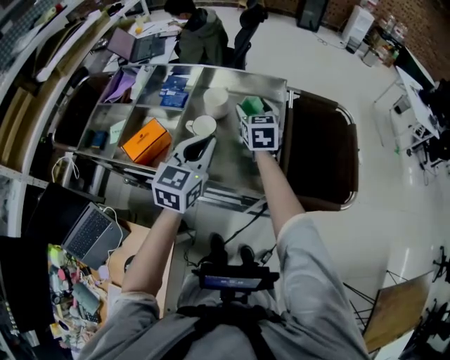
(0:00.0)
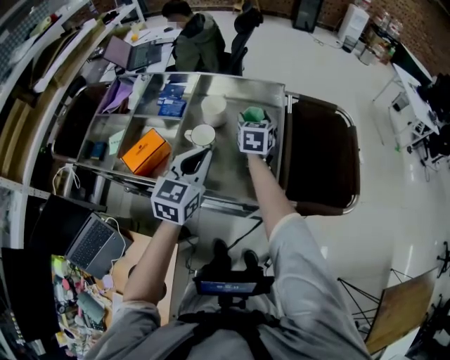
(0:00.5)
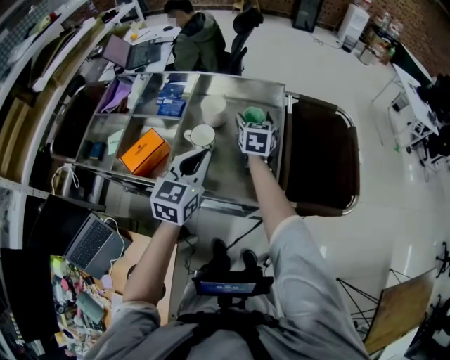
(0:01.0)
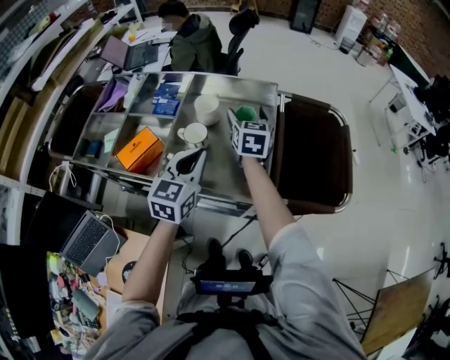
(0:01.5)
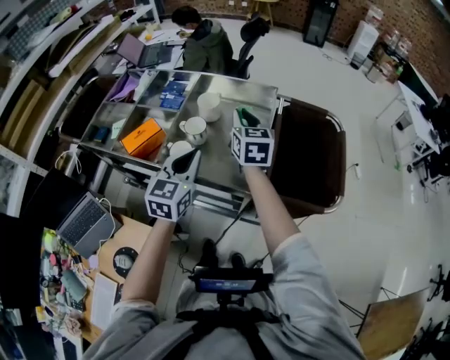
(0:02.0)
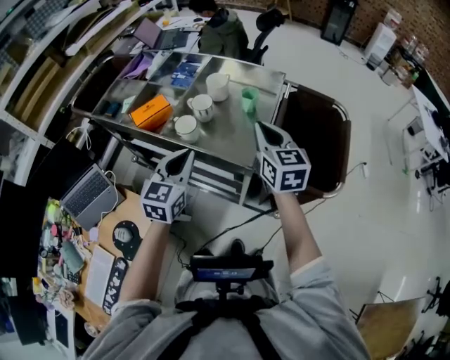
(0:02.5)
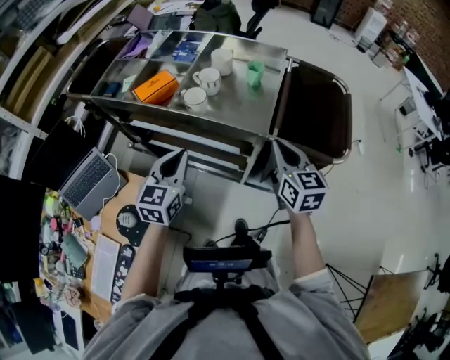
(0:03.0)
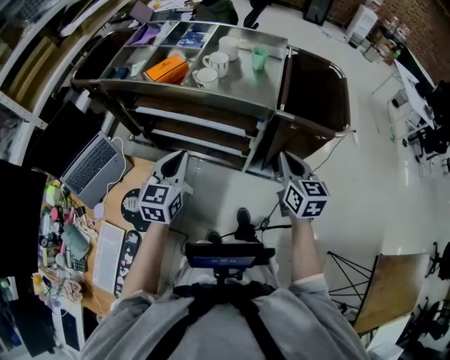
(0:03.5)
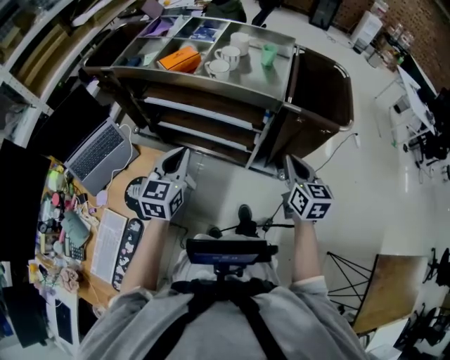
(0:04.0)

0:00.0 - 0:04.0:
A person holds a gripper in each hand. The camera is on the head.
0:00.0 - 0:02.0: The right gripper travels upward and backward by about 10 cm, and closes.
0:02.0 - 0:04.0: The right gripper heads backward, covering roughly 40 cm. Meanwhile the left gripper travels backward and to the left by about 35 cm.

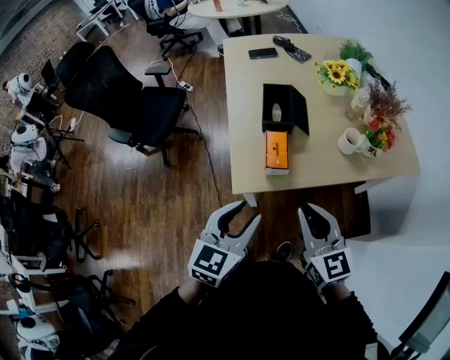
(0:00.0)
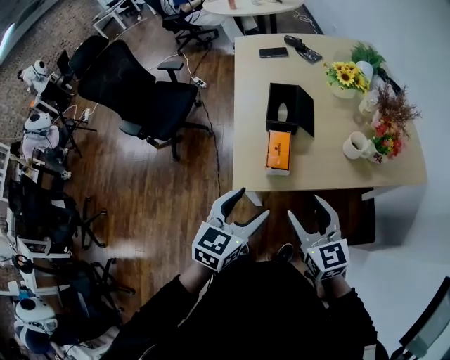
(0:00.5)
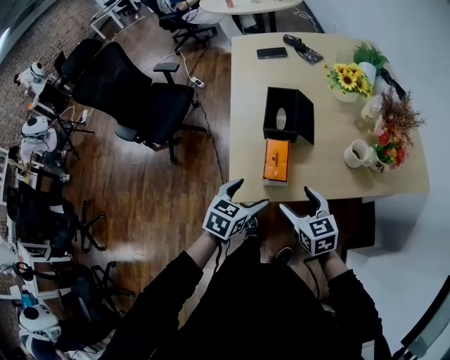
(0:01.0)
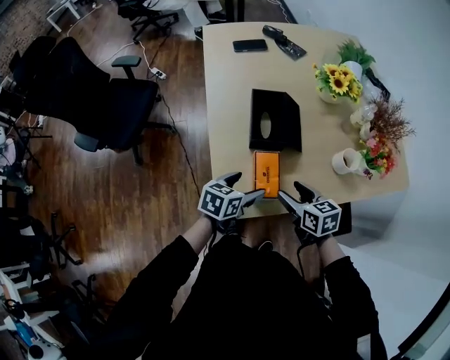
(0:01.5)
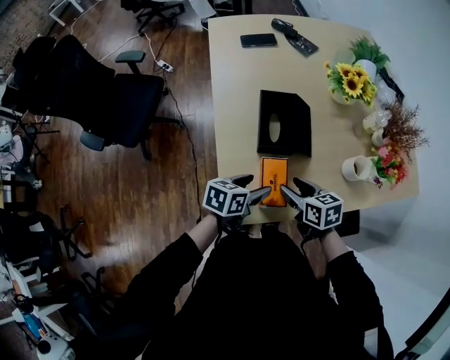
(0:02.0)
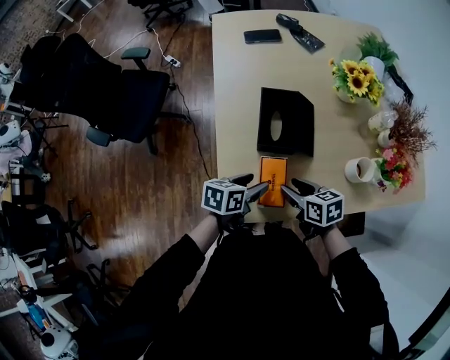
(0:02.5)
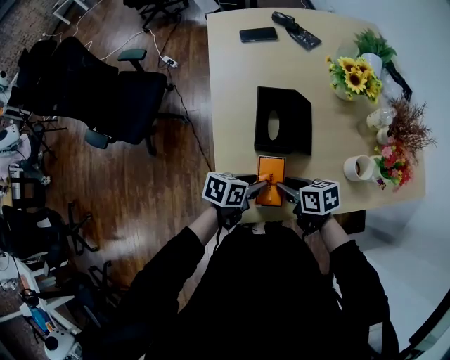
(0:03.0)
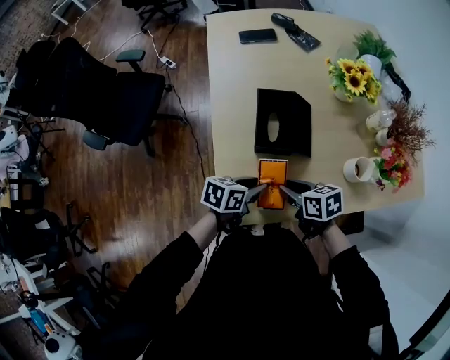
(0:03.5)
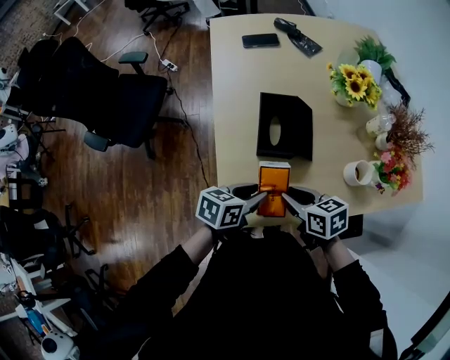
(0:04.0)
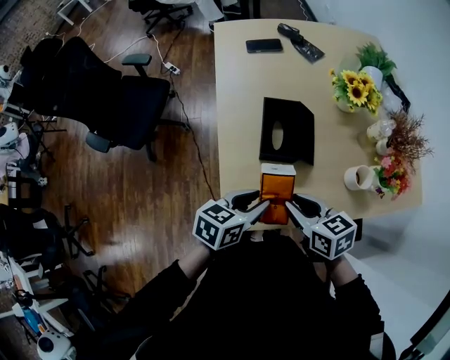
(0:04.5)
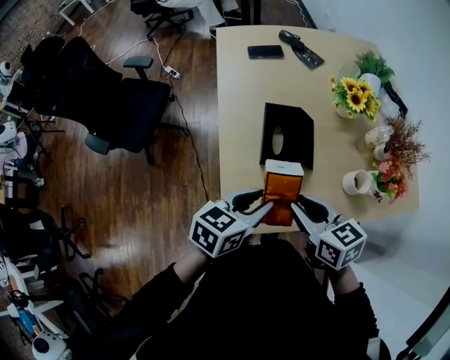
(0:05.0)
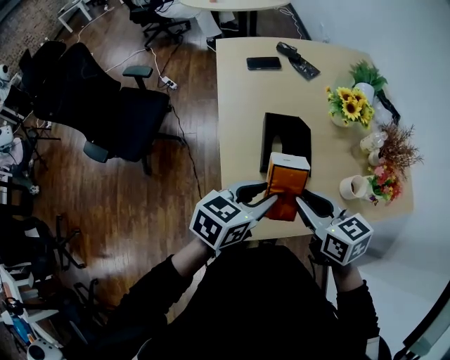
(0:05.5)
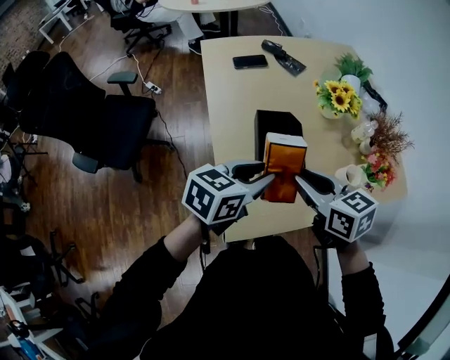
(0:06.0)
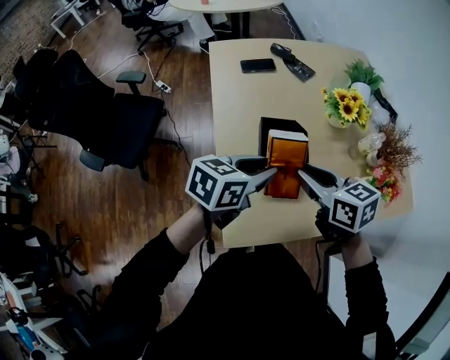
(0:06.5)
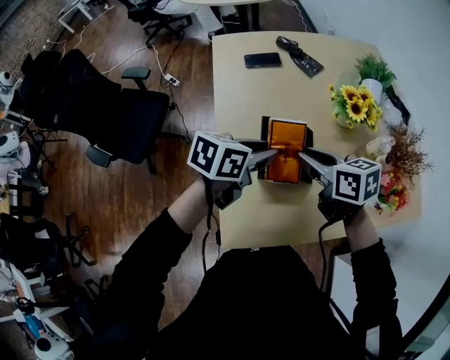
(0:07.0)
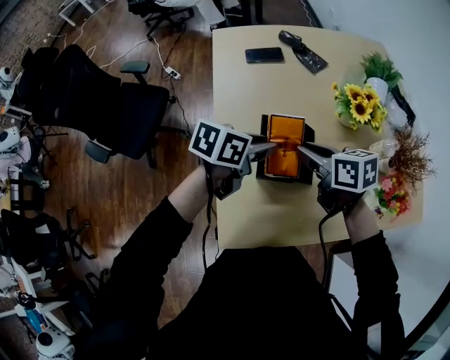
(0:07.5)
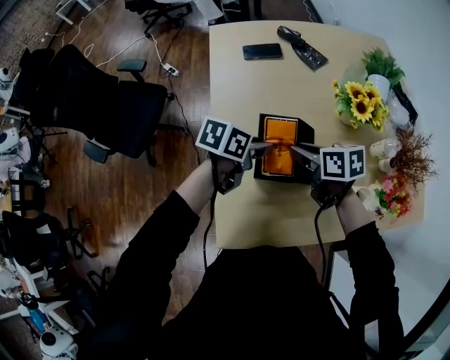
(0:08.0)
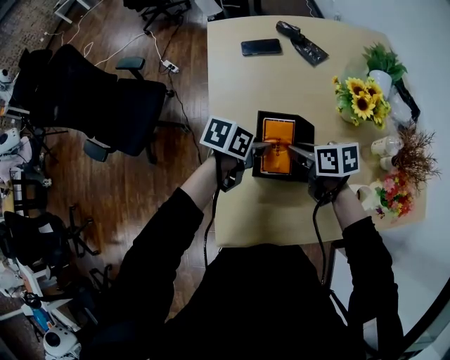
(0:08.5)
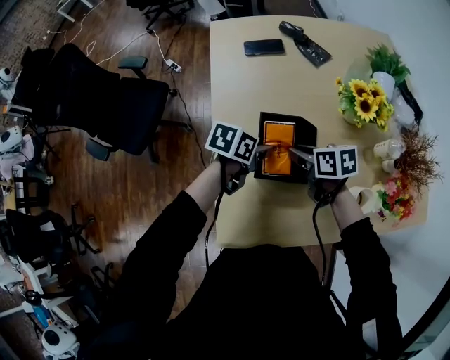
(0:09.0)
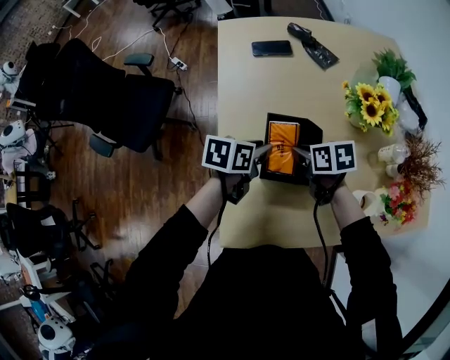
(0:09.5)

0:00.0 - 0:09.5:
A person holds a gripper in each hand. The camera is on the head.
0:00.0 - 0:02.0: Both grippers travel together forward and downward, about 30 cm. The right gripper changes its angle by some 40 degrees, and opens up. Meanwhile the left gripper turns by roughly 40 degrees, and opens.
0:02.0 - 0:04.0: The right gripper closes. Meanwhile the left gripper closes up.
0:04.0 - 0:05.5: The two grippers go approximately 15 cm upward. The left gripper rotates some 20 degrees.
0:05.5 - 0:07.5: The two grippers go roughly 15 cm forward.
0:07.5 - 0:09.5: The two grippers go some 10 cm downward.

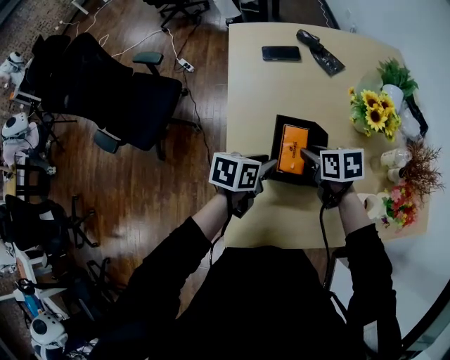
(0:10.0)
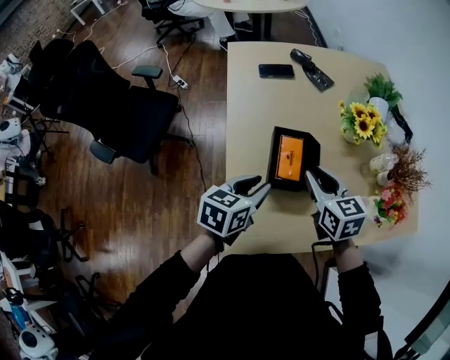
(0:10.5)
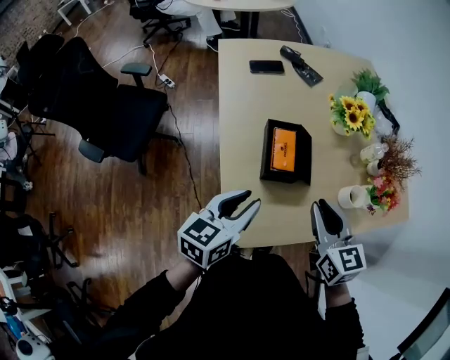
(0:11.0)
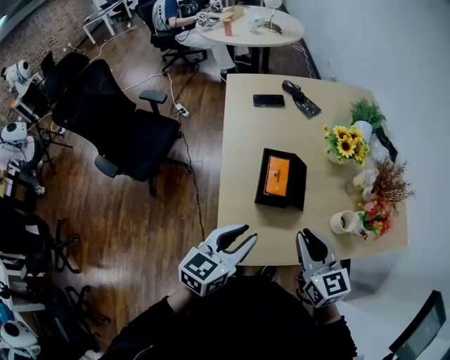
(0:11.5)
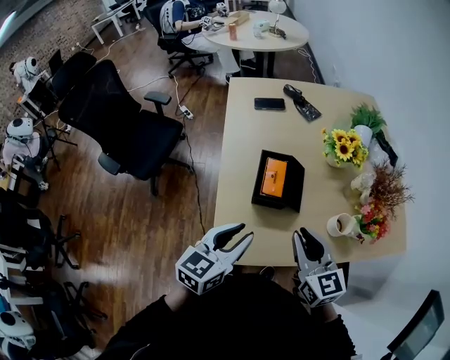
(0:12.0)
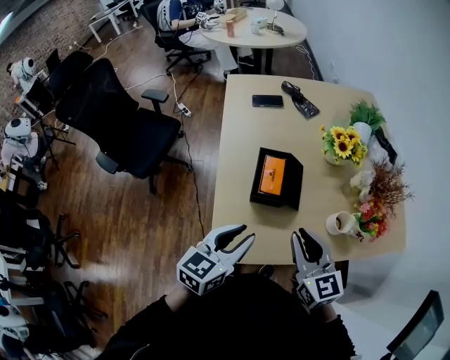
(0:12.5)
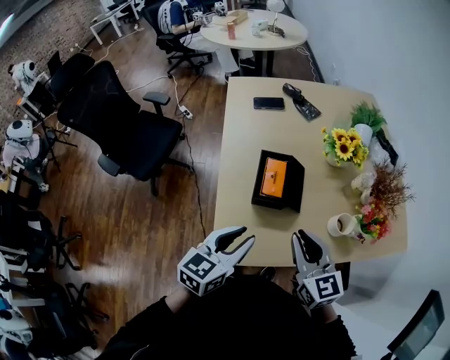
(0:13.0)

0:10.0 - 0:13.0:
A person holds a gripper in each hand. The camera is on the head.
0:10.0 - 0:11.5: Both grippers travel together backward and upward, roughly 25 cm. The right gripper tilts its fingers some 30 degrees upward. The left gripper swivels approximately 30 degrees.
0:11.5 - 0:13.0: The grippers make only small movements.

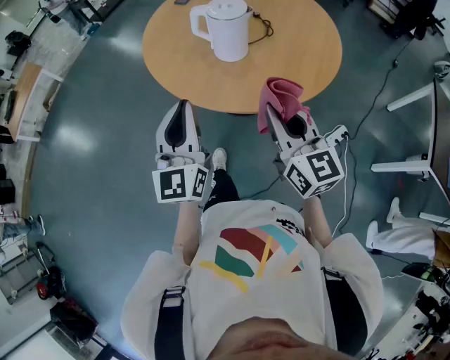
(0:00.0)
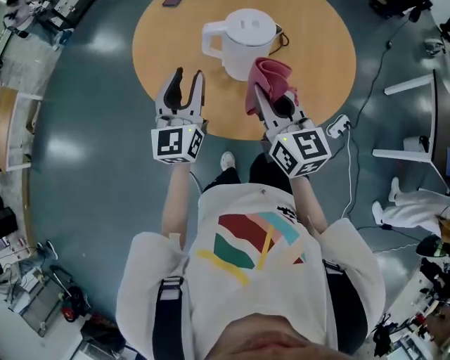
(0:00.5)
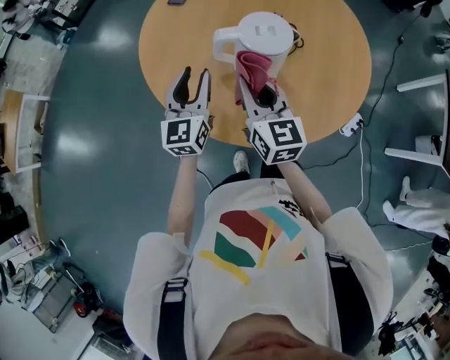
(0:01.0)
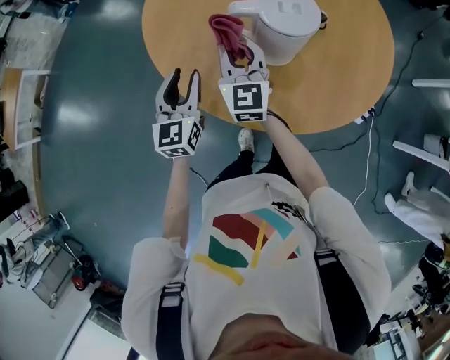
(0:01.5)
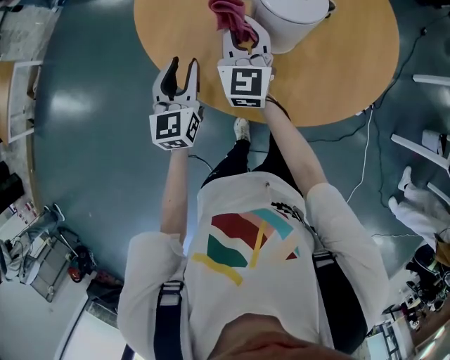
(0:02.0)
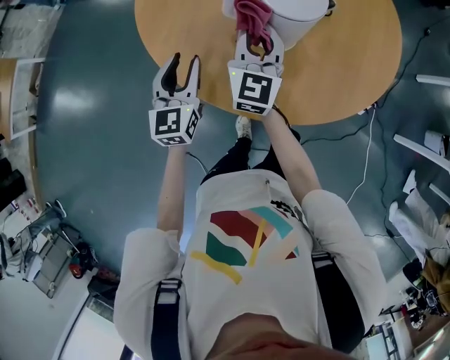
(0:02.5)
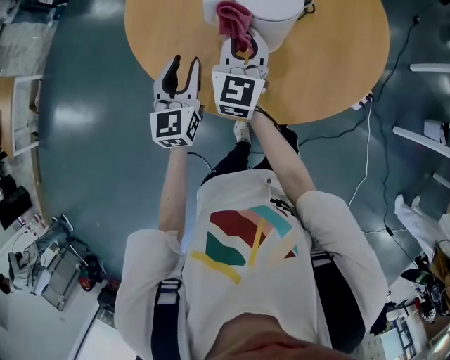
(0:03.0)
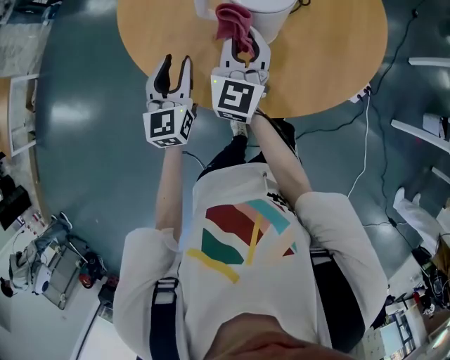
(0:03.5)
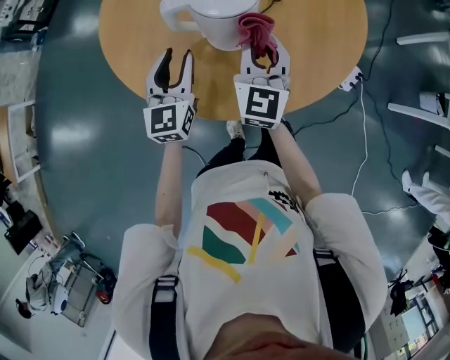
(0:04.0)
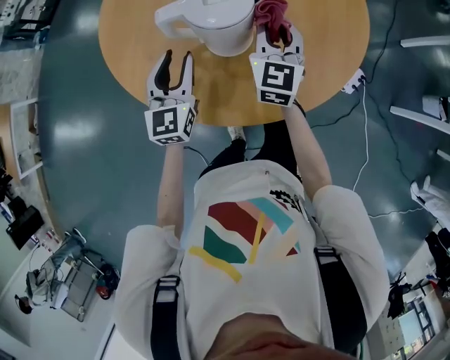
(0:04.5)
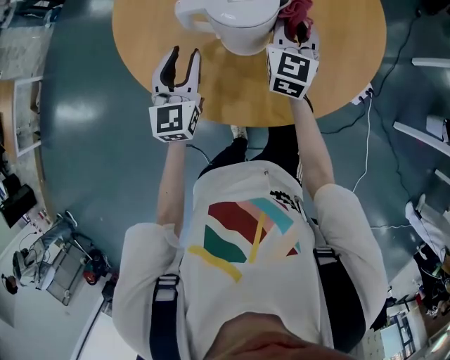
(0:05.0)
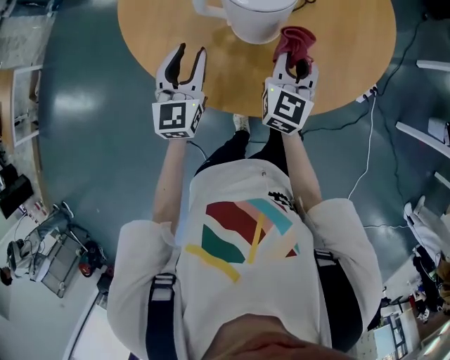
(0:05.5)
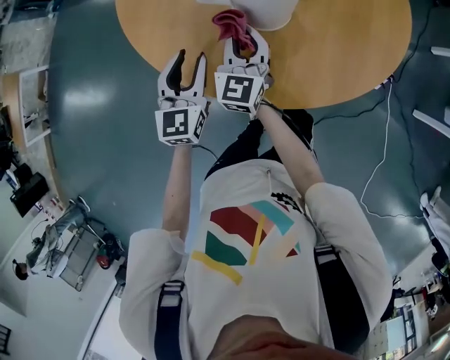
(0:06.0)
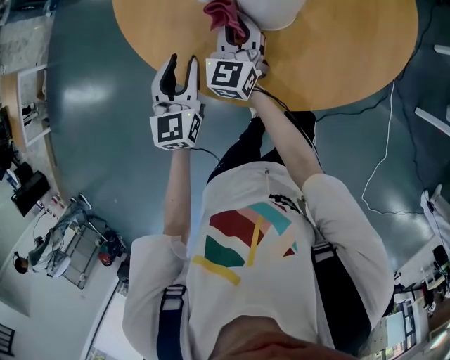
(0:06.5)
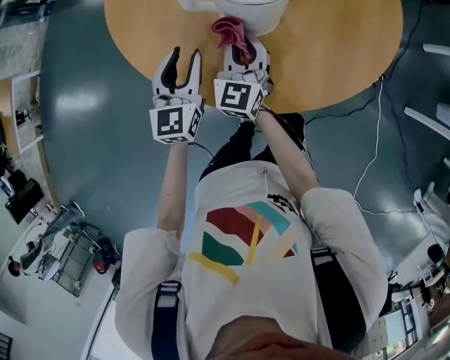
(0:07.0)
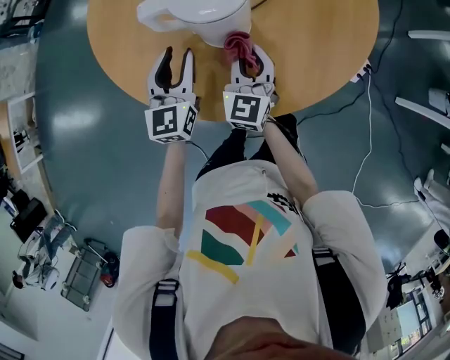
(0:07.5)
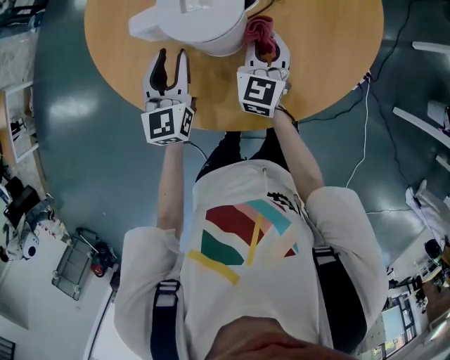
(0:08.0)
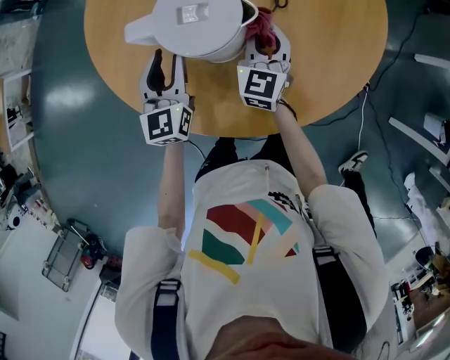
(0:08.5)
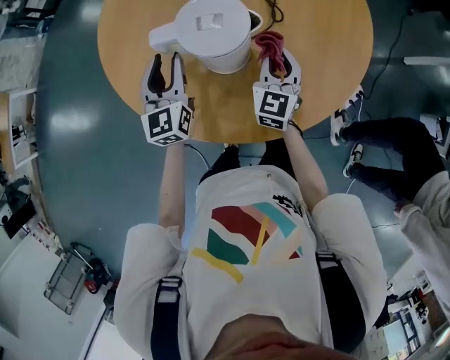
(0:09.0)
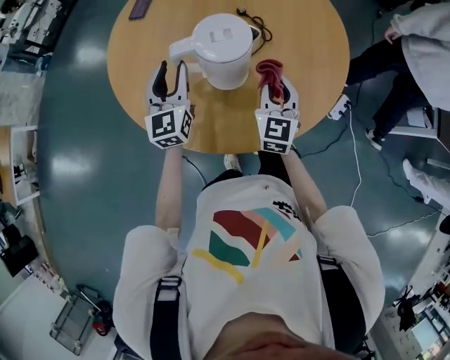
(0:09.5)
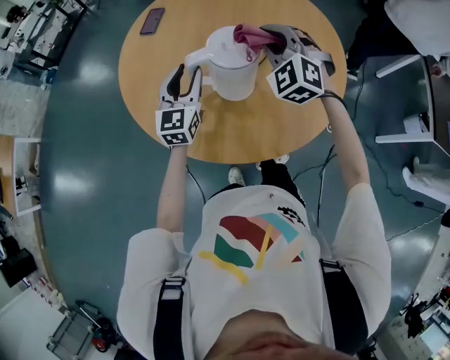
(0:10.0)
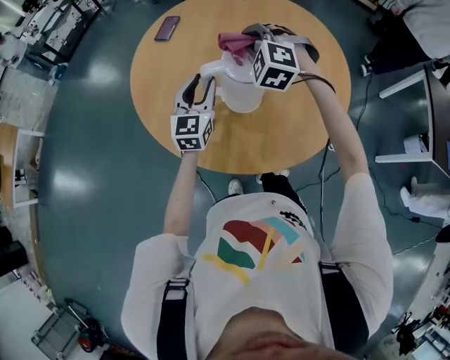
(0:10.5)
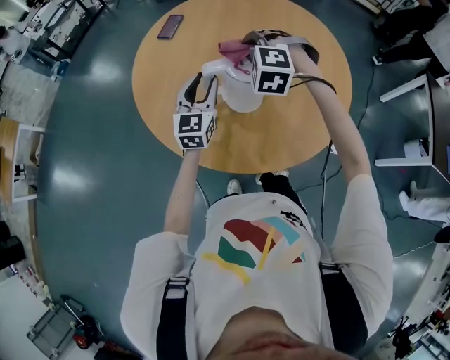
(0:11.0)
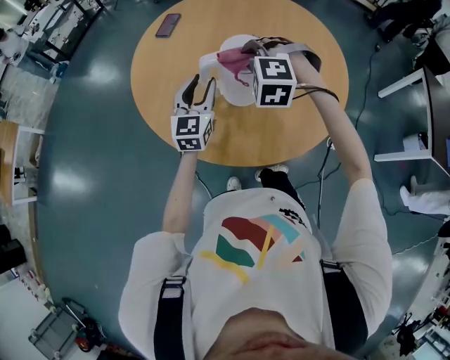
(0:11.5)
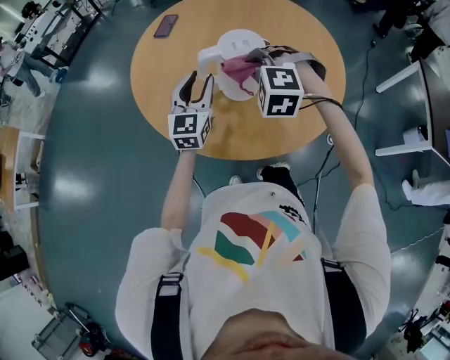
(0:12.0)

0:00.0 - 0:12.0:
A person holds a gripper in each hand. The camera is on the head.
0:00.0 - 0:02.0: The right gripper moves forward and to the left, roughly 50 cm, and rotates about 30 degrees; the left gripper heads forward, downward and to the left, covering approximately 40 cm, changes its angle by some 20 degrees, and opens its fingers.
0:02.0 - 0:04.0: The left gripper travels to the right by some 10 cm; the right gripper goes roughly 15 cm to the right.
0:04.0 - 0:06.0: The right gripper is displaced downward and to the left by about 15 cm; the left gripper is displaced downward by roughly 5 cm.
0:06.0 - 0:08.0: The right gripper travels to the right and forward by roughly 20 cm. Meanwhile the left gripper shifts about 15 cm forward and to the right.
0:08.0 - 0:10.0: The left gripper travels upward by some 10 cm. Meanwhile the right gripper shifts about 20 cm upward, and rolls counterclockwise, seen from behind, by roughly 50 degrees.
0:10.0 - 0:12.0: The right gripper goes roughly 10 cm backward and to the left, and turns by some 30 degrees. The left gripper heads backward, covering about 5 cm.
